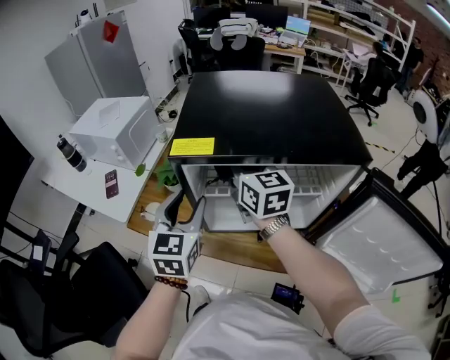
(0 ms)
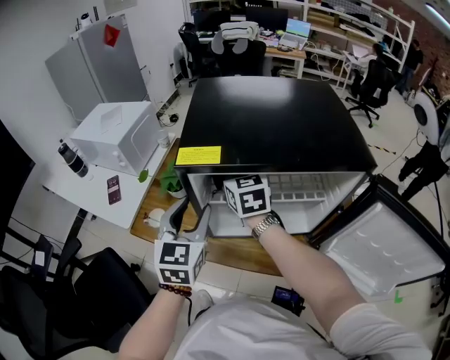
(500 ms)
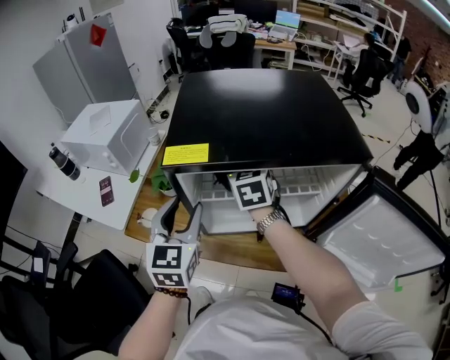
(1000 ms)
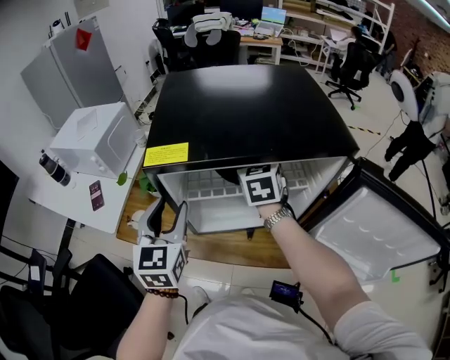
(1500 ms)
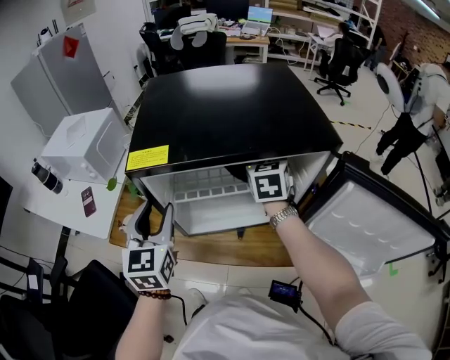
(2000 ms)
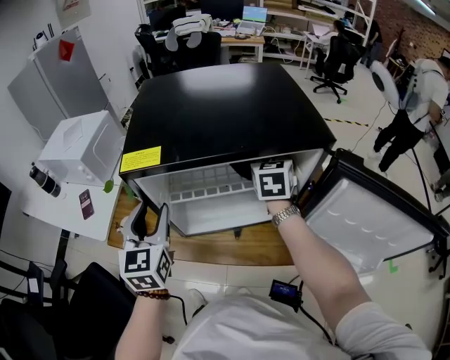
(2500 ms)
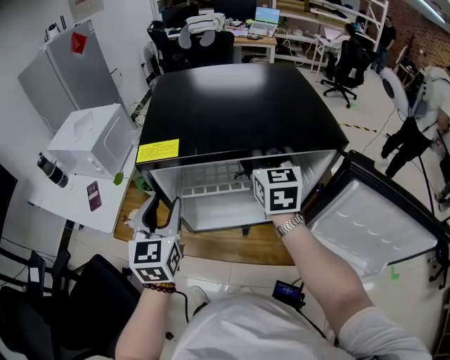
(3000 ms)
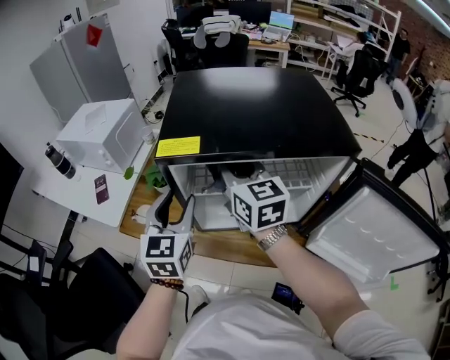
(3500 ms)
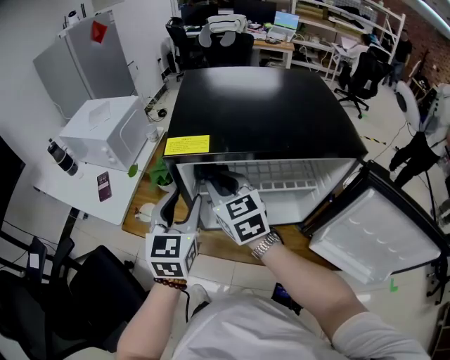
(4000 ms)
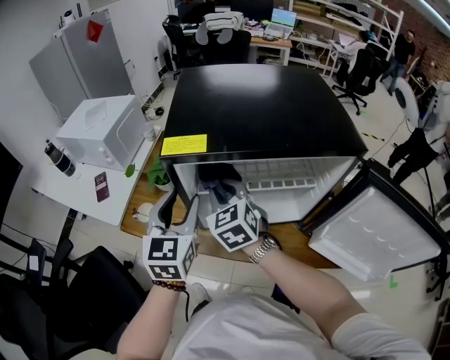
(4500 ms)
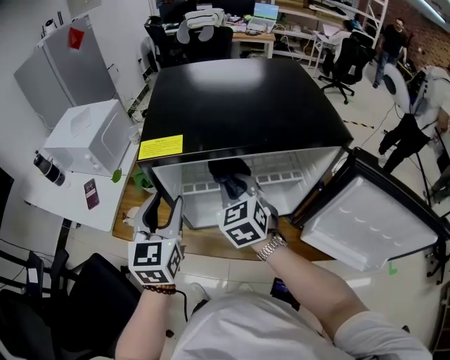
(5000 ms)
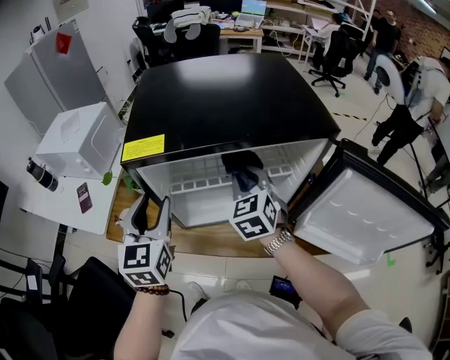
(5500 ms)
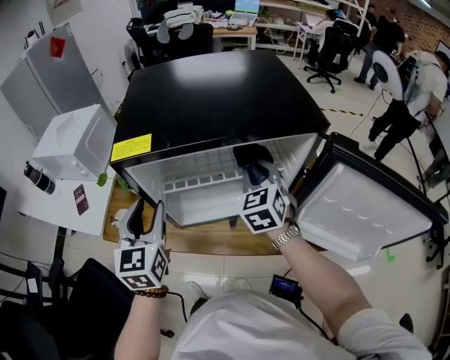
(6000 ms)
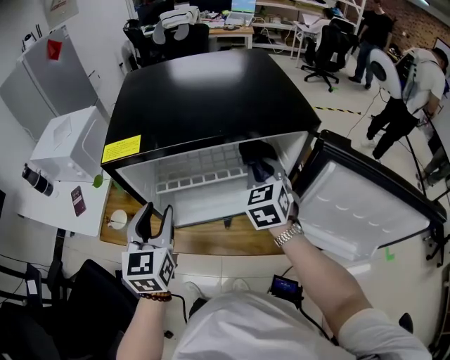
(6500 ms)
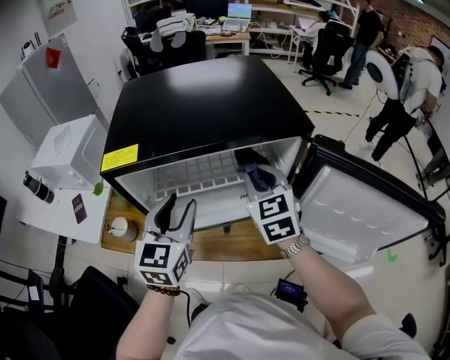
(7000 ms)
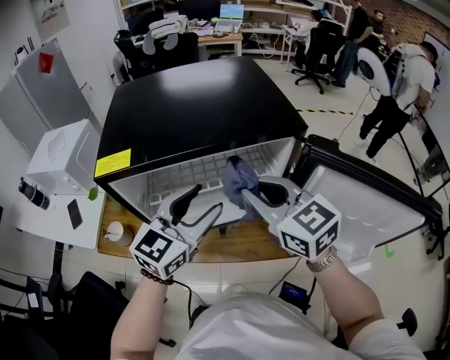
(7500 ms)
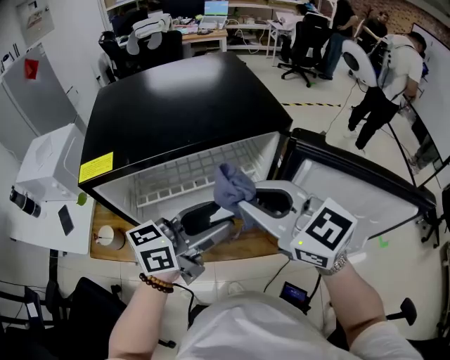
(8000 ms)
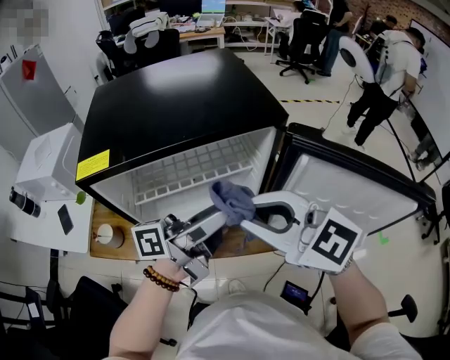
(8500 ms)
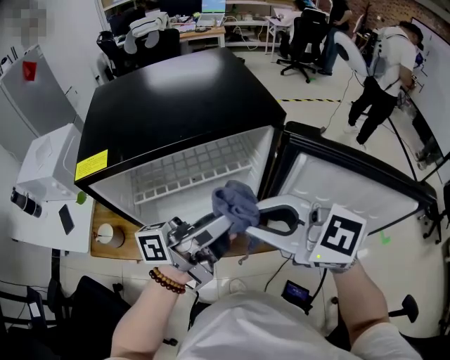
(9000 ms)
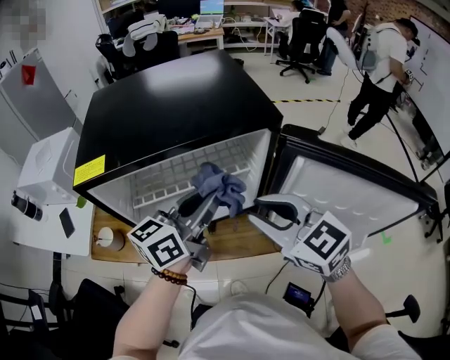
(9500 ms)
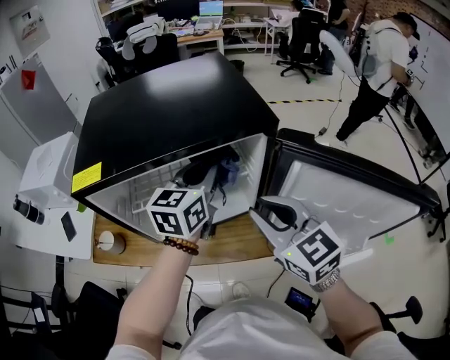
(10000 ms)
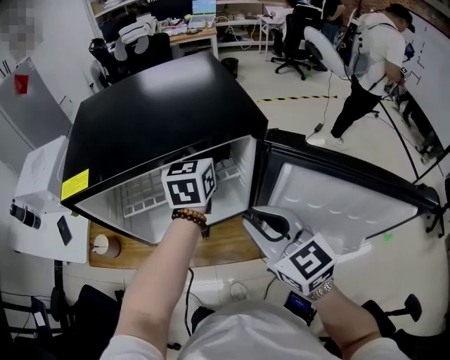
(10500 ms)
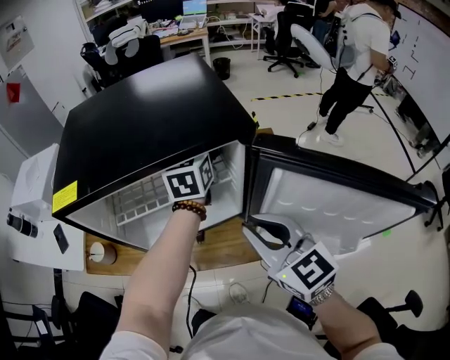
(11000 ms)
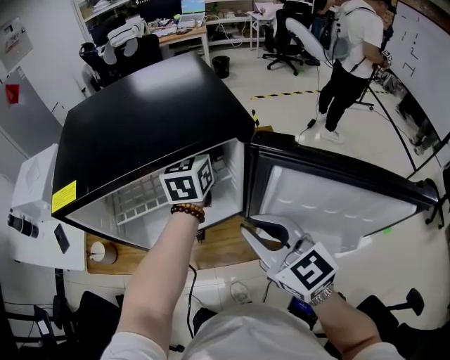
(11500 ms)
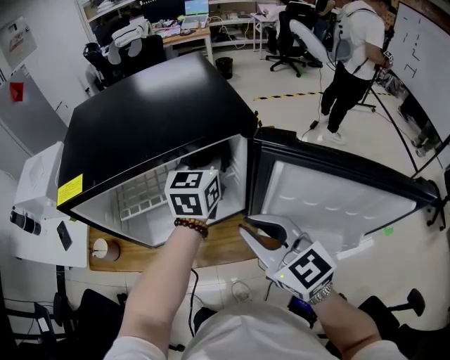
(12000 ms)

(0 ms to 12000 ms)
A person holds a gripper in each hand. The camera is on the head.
0 ms - 2000 ms: The right gripper heads to the right and downward, covering roughly 20 cm, and swivels about 40 degrees.
2000 ms - 4000 ms: The right gripper is displaced to the left and backward by approximately 25 cm, and turns by some 30 degrees.
4000 ms - 6000 ms: The right gripper heads to the right, covering roughly 20 cm, and turns by some 30 degrees.
6000 ms - 8000 ms: The left gripper goes some 25 cm to the right, and changes its angle by some 70 degrees. The right gripper is displaced backward and upward by roughly 20 cm, and swivels about 40 degrees.
8000 ms - 10000 ms: The right gripper is displaced downward by some 5 cm, while the left gripper ends up roughly 15 cm from where it was, turns by approximately 40 degrees, and closes up.
10000 ms - 12000 ms: The left gripper goes approximately 5 cm to the right.

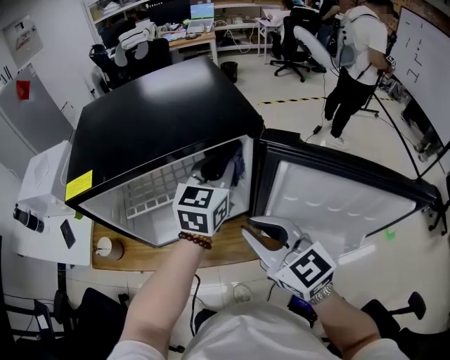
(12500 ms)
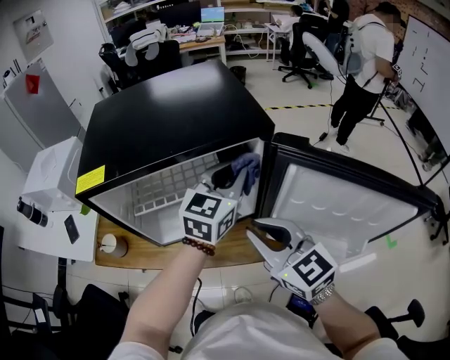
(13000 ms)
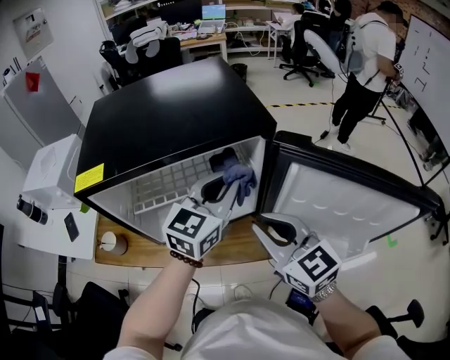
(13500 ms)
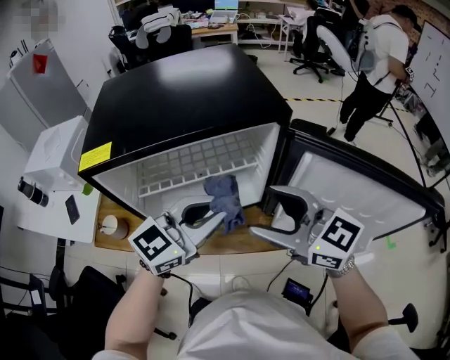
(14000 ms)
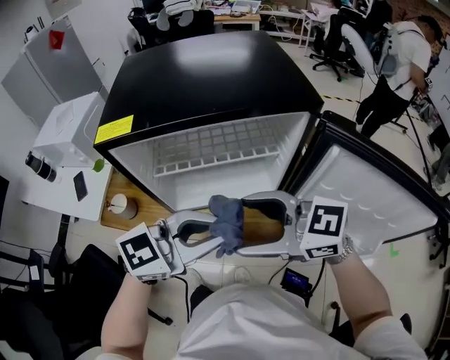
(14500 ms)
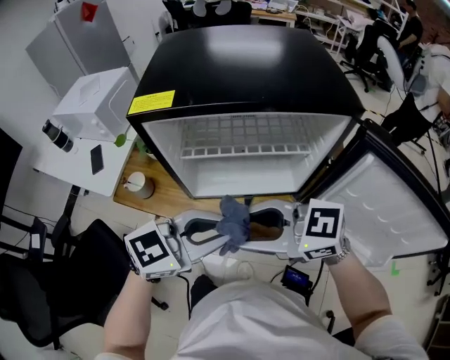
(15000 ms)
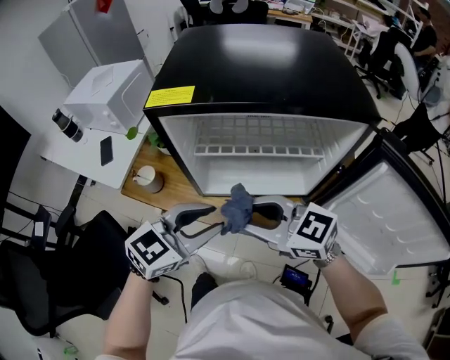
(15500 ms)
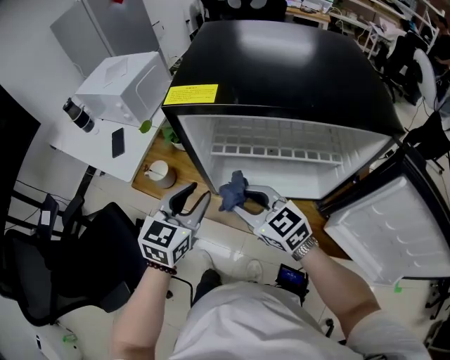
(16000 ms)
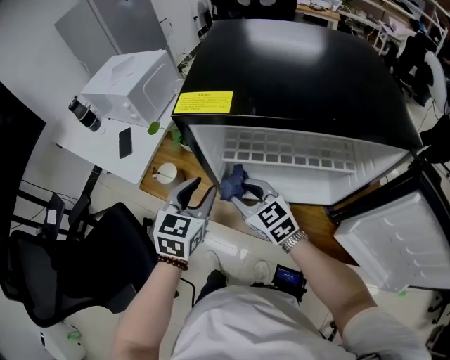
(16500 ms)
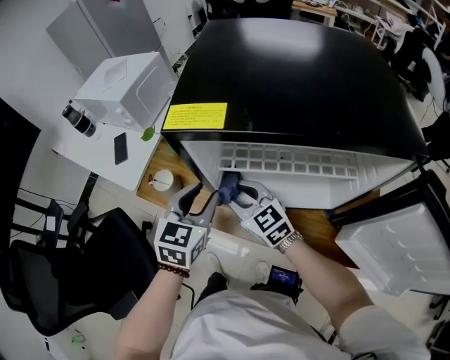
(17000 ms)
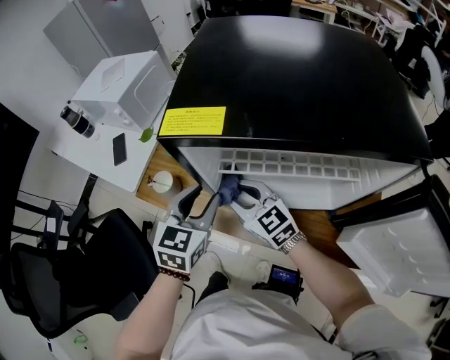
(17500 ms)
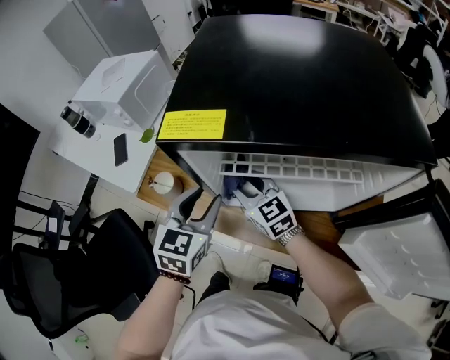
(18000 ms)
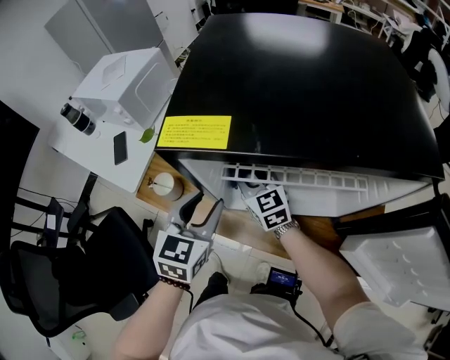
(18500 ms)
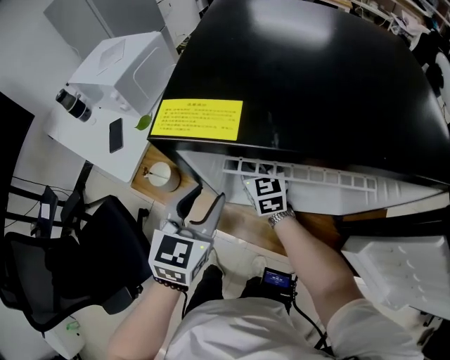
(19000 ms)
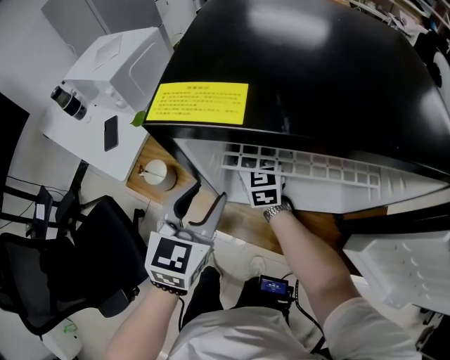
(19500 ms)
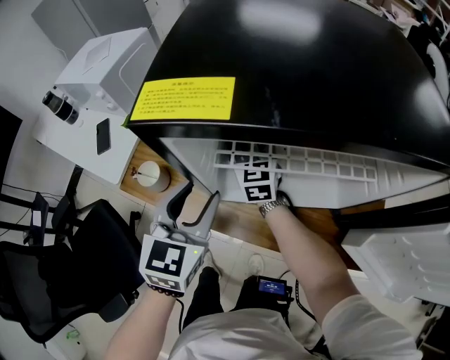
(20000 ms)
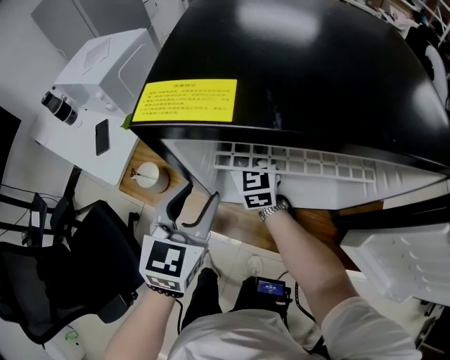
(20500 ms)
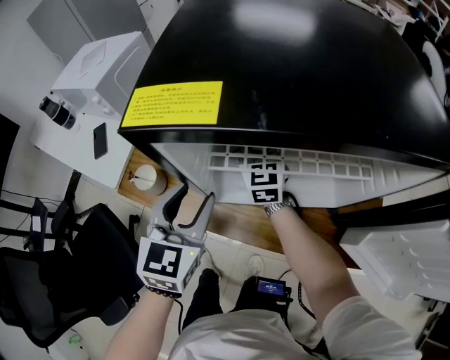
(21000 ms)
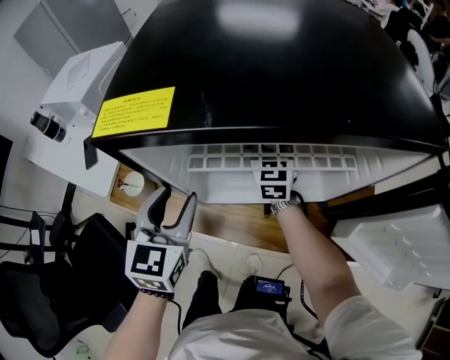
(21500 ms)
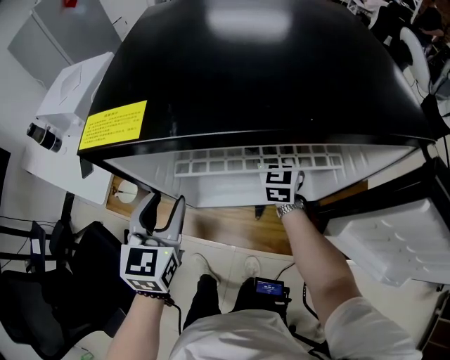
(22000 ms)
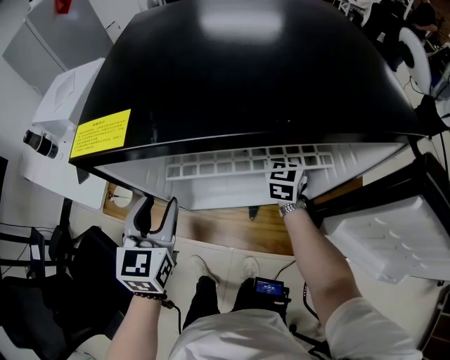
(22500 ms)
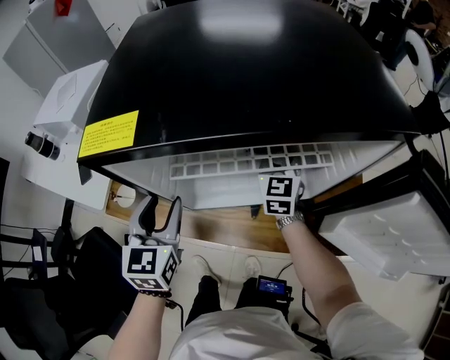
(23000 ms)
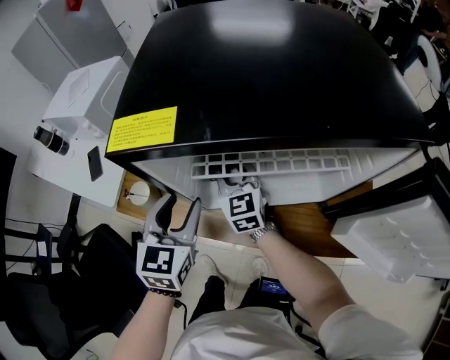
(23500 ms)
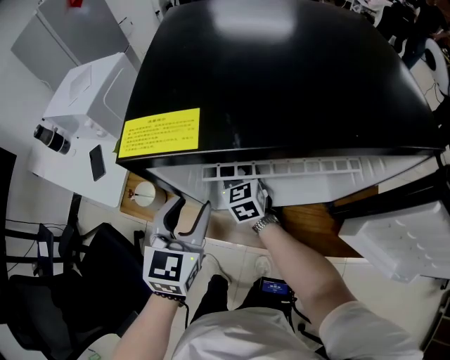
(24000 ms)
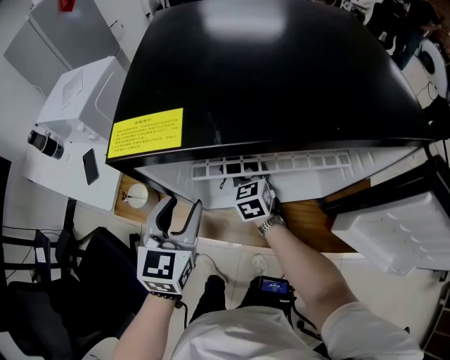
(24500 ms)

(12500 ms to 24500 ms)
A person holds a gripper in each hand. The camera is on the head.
12500 ms - 14500 ms: The left gripper shifts by about 25 cm, and turns by about 30 degrees. The right gripper shifts by approximately 10 cm, swivels some 50 degrees, and opens.
14500 ms - 16500 ms: The right gripper moves some 25 cm, and closes; the left gripper shifts by about 30 cm, turns by approximately 70 degrees, and opens up.
16500 ms - 18500 ms: The right gripper goes about 10 cm forward.
18500 ms - 20500 ms: The right gripper travels forward by about 5 cm.
20500 ms - 22500 ms: The right gripper is displaced to the right by approximately 25 cm, and rotates about 30 degrees.
22500 ms - 24500 ms: The right gripper shifts roughly 20 cm to the left and downward, and turns by approximately 30 degrees.

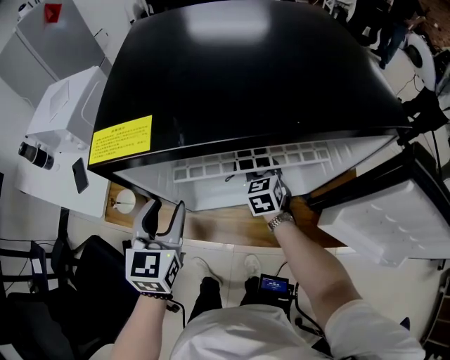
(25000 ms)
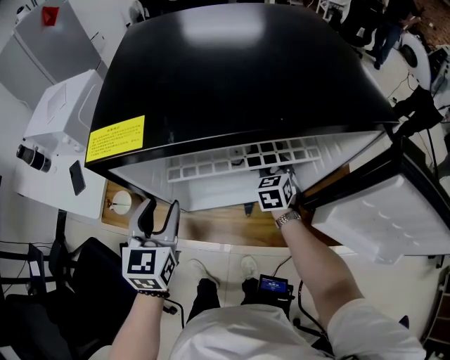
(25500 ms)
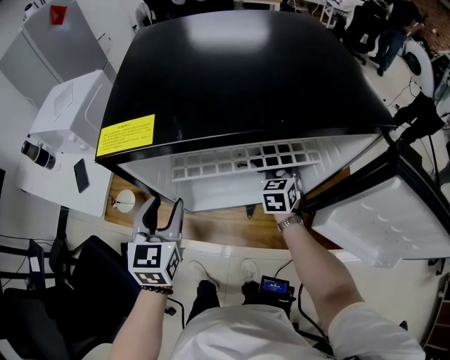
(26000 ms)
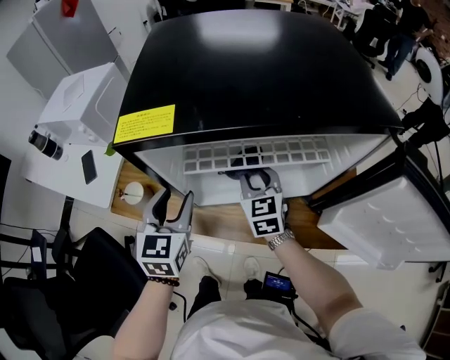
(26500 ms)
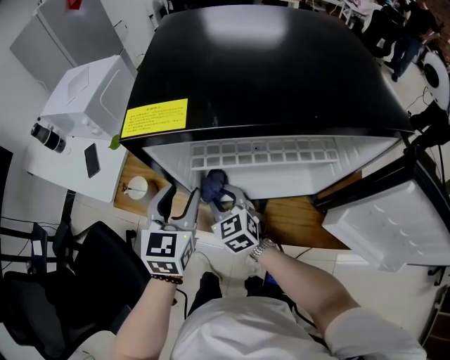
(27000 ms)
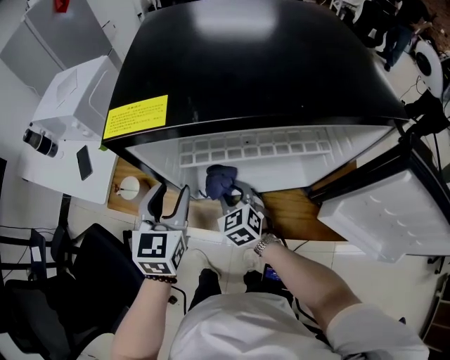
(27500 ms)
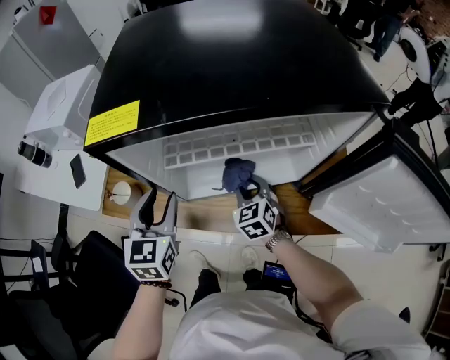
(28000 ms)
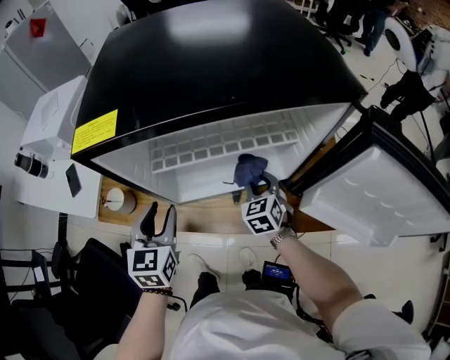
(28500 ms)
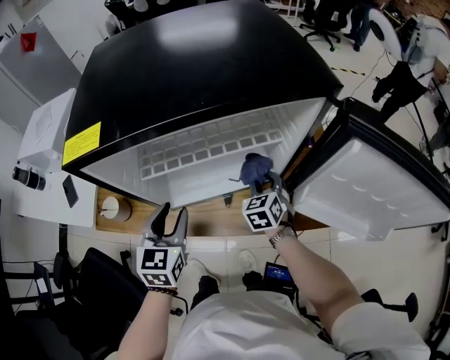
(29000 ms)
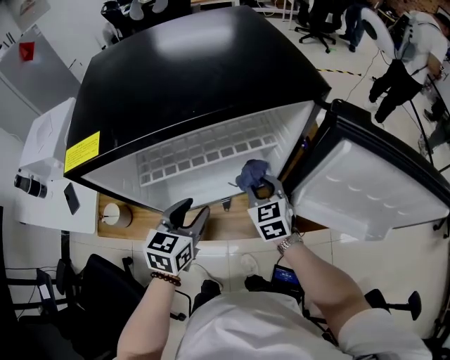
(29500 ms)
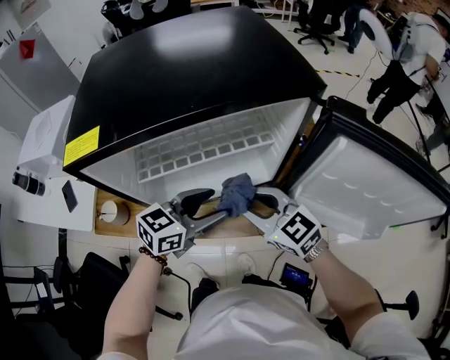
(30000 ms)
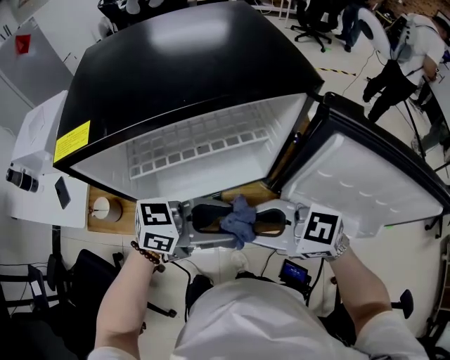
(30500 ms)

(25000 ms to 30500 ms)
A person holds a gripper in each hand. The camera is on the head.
25000 ms - 27000 ms: The right gripper is displaced to the left and backward by some 20 cm, and rotates about 30 degrees.
27000 ms - 28500 ms: The left gripper changes place by roughly 5 cm. Meanwhile the right gripper heads to the right, covering approximately 20 cm, and swivels roughly 30 degrees.
28500 ms - 30500 ms: The right gripper goes approximately 20 cm upward, and turns by roughly 60 degrees; the left gripper moves some 25 cm, changes its angle by roughly 80 degrees, and opens.
